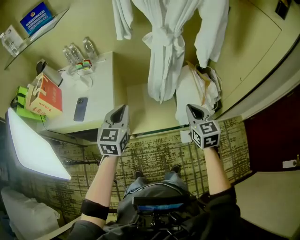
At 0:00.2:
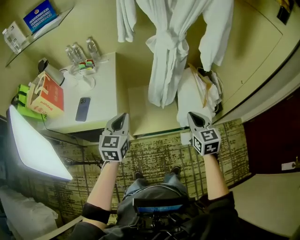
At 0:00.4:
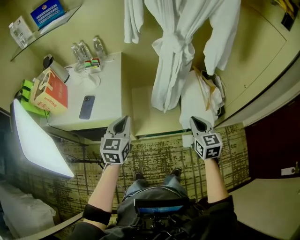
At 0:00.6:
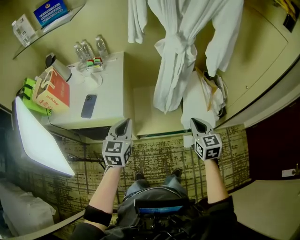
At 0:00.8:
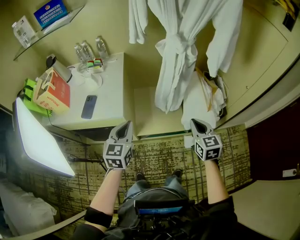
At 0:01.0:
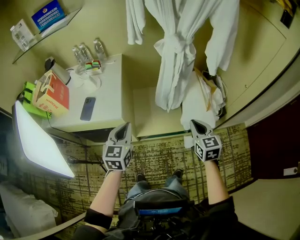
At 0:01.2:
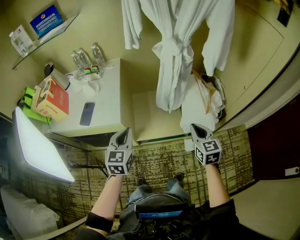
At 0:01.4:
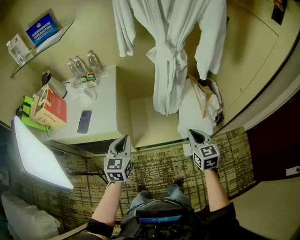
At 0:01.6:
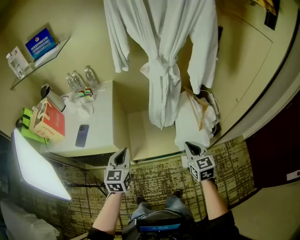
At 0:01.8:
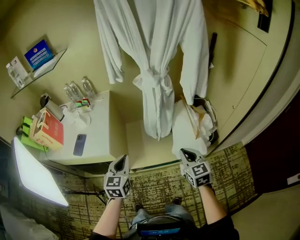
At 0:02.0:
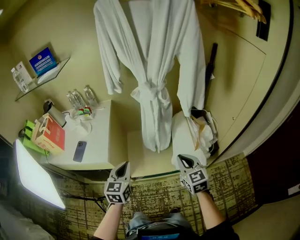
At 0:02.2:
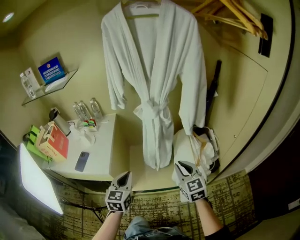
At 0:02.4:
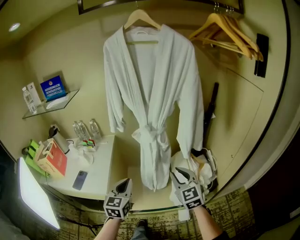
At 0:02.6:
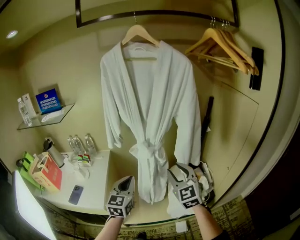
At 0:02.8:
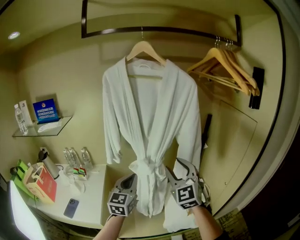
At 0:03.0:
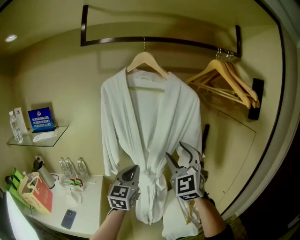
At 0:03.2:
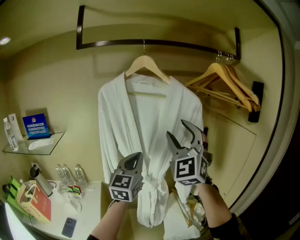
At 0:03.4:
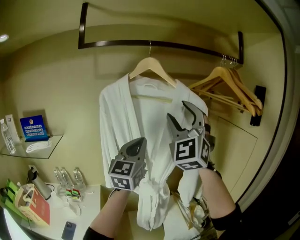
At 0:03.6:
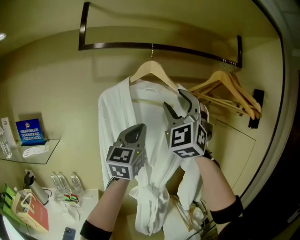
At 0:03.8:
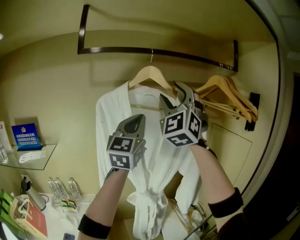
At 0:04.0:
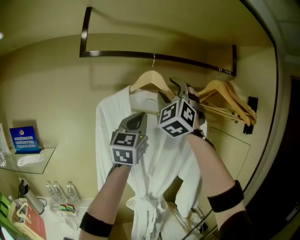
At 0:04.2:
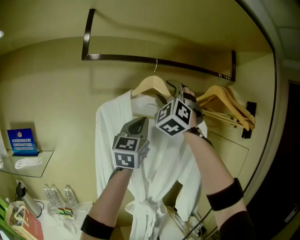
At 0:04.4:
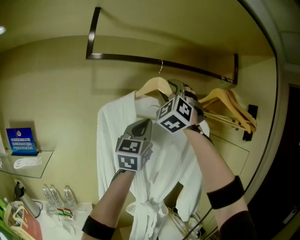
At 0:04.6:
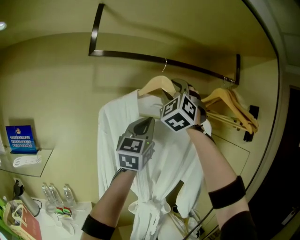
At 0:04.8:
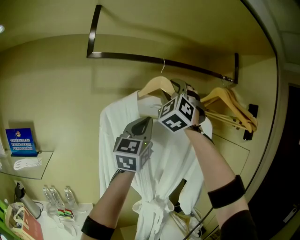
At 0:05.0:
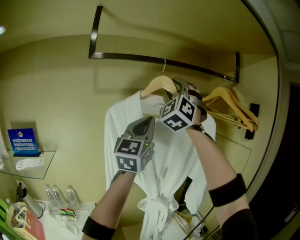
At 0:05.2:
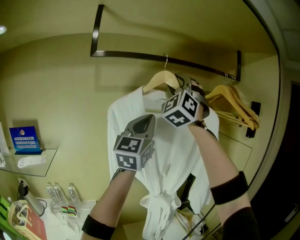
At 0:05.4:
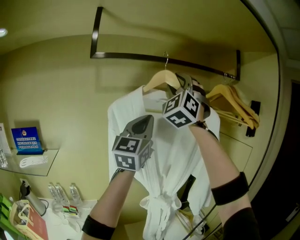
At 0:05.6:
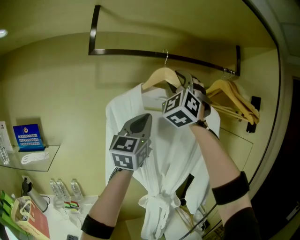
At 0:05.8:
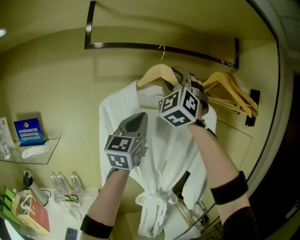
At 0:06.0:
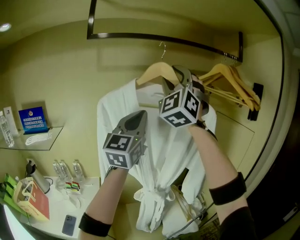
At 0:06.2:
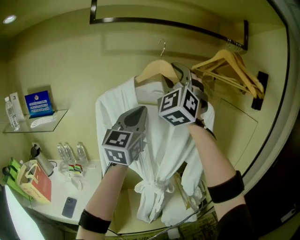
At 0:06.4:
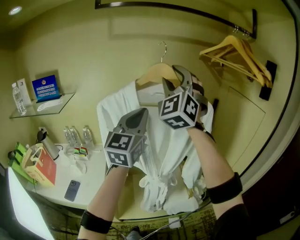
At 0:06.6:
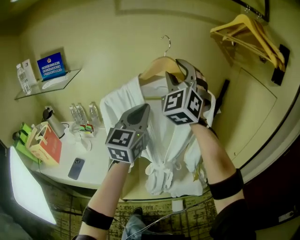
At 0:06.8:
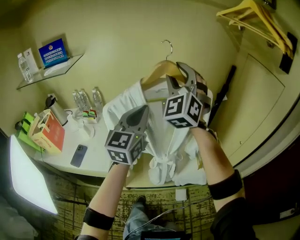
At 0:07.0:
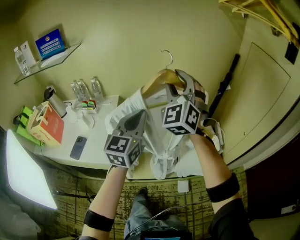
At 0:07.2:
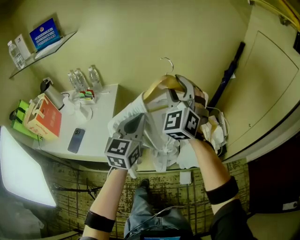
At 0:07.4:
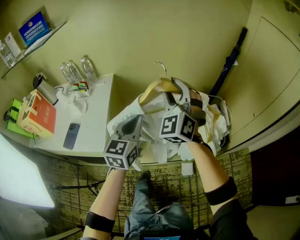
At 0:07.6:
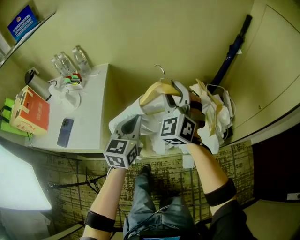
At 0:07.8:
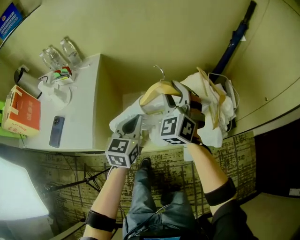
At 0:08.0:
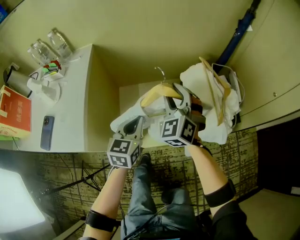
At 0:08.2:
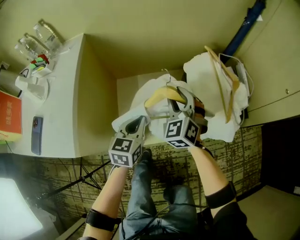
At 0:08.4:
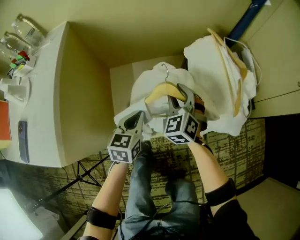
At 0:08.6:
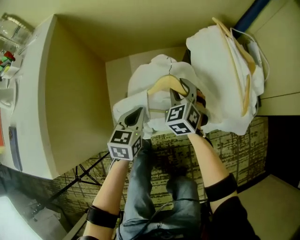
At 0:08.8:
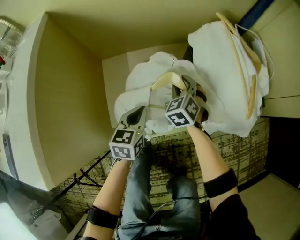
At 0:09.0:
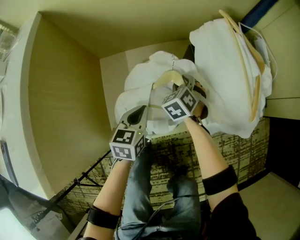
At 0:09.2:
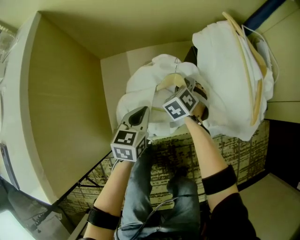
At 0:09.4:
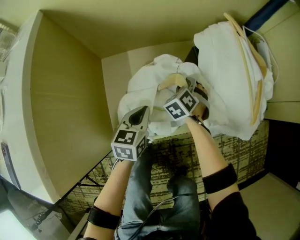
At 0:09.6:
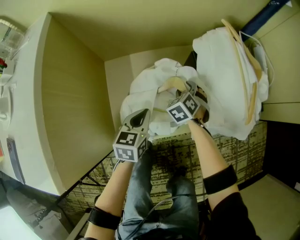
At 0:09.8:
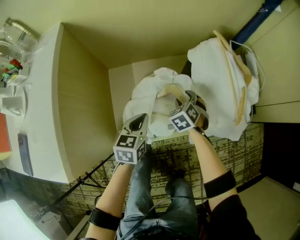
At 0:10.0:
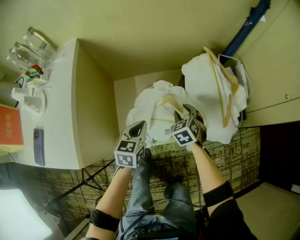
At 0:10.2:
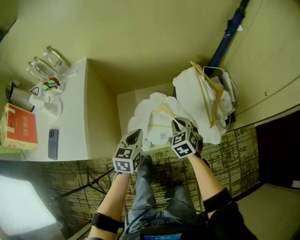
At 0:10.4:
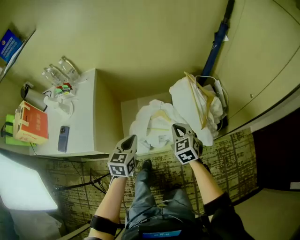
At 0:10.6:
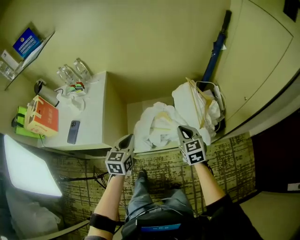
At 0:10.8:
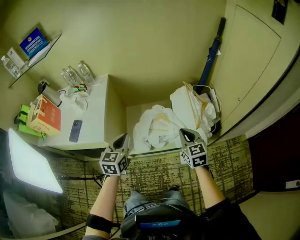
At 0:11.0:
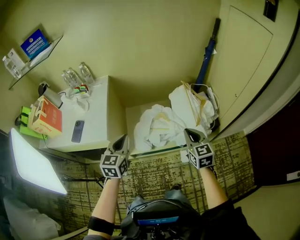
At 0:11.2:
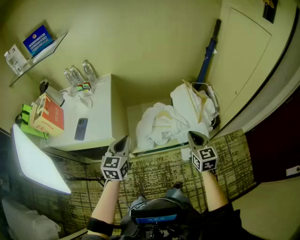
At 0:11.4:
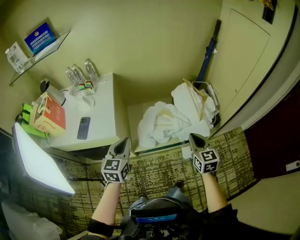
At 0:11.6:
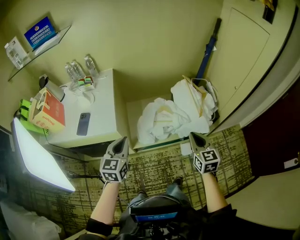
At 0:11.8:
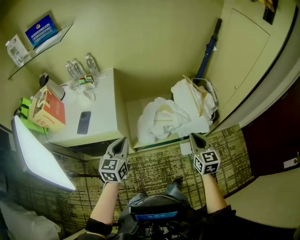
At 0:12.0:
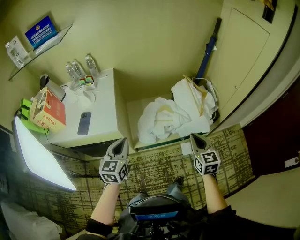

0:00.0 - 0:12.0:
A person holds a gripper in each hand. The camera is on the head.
0:00.0 - 0:01.6: The left gripper moves downward, approximately 5 cm. The right gripper shifts by some 5 cm.
0:01.6 - 0:03.0: The right gripper is displaced upward and forward by some 50 cm, tips its fingers upward by roughly 40 degrees, and opens up. Meanwhile the left gripper is displaced upward, forward and to the right by about 40 cm, and swivels roughly 30 degrees.
0:03.0 - 0:04.4: The right gripper travels upward and forward by roughly 35 cm, and swivels about 40 degrees, while the left gripper shifts about 30 cm upward, and rotates approximately 30 degrees.
0:04.4 - 0:06.0: The left gripper shifts some 10 cm backward and downward; the right gripper is displaced backward by approximately 10 cm.
0:06.0 - 0:07.6: The grippers both shift downward by about 60 cm. The left gripper tips its fingers downward by about 40 degrees. The right gripper points its fingers some 30 degrees further downward.
0:07.6 - 0:09.0: The two grippers go approximately 50 cm downward. The left gripper changes its angle by approximately 30 degrees. Meanwhile the right gripper points its fingers roughly 40 degrees further downward.
0:09.0 - 0:10.4: The grippers both shift upward and backward by about 40 cm. The right gripper swivels about 30 degrees, and closes up.
0:10.4 - 0:12.0: The right gripper travels backward and upward by about 30 cm, and swivels some 20 degrees; the left gripper shifts approximately 25 cm backward, to the left and upward.

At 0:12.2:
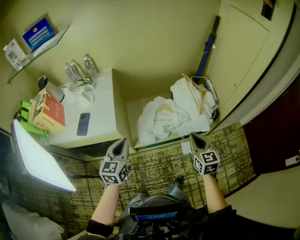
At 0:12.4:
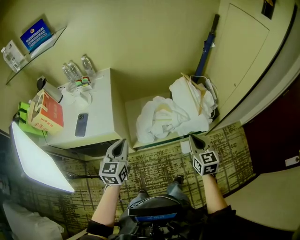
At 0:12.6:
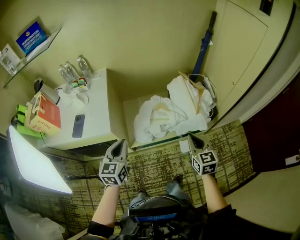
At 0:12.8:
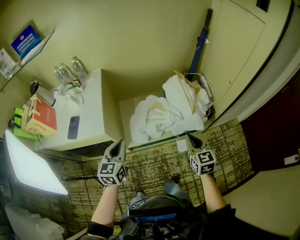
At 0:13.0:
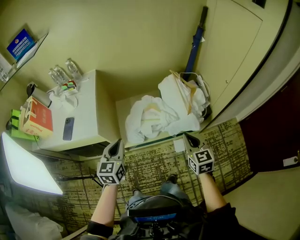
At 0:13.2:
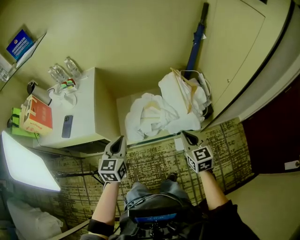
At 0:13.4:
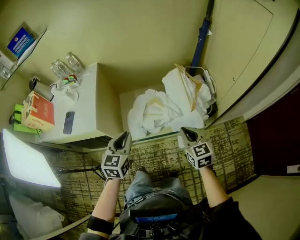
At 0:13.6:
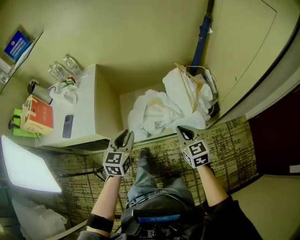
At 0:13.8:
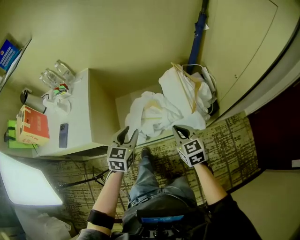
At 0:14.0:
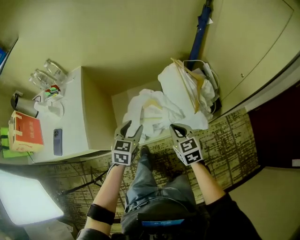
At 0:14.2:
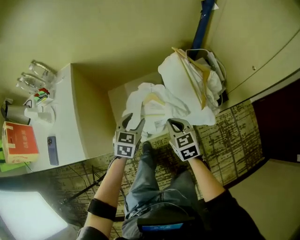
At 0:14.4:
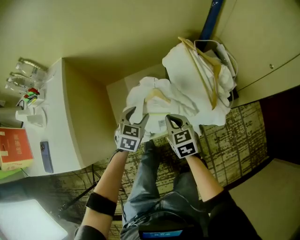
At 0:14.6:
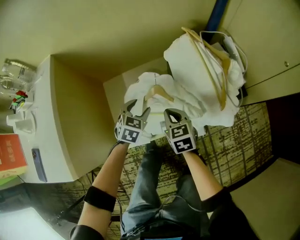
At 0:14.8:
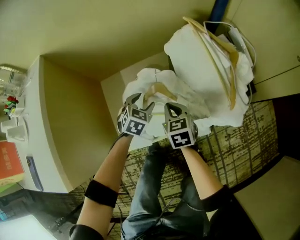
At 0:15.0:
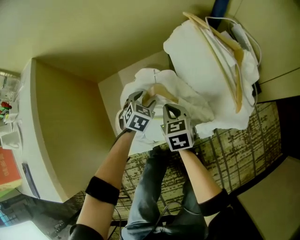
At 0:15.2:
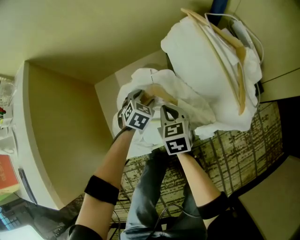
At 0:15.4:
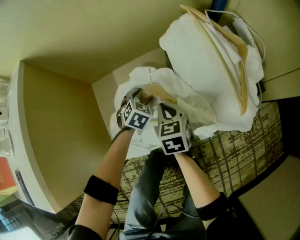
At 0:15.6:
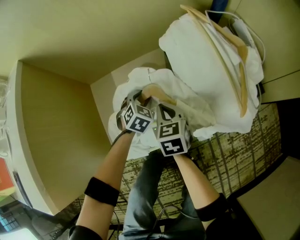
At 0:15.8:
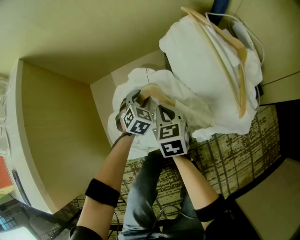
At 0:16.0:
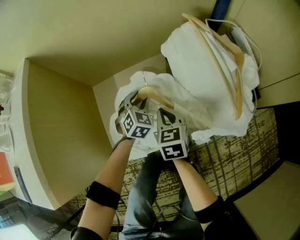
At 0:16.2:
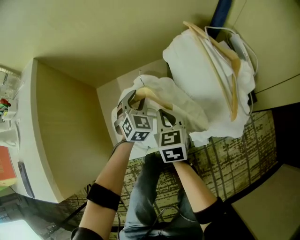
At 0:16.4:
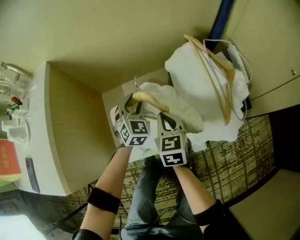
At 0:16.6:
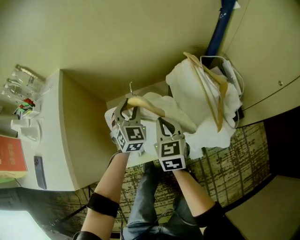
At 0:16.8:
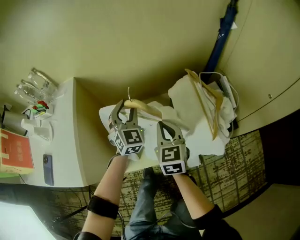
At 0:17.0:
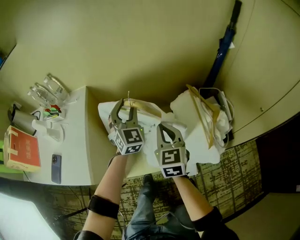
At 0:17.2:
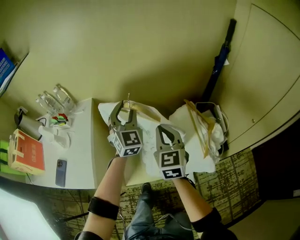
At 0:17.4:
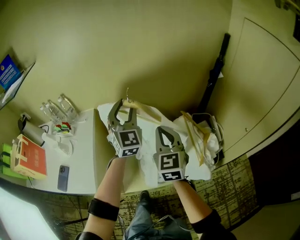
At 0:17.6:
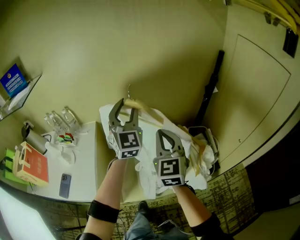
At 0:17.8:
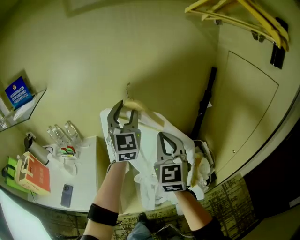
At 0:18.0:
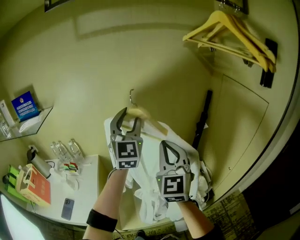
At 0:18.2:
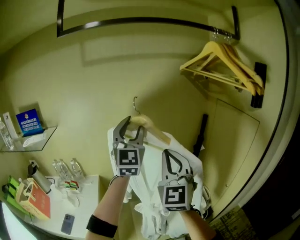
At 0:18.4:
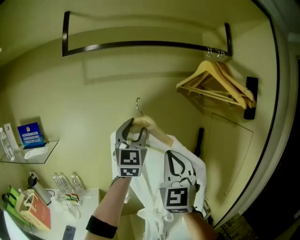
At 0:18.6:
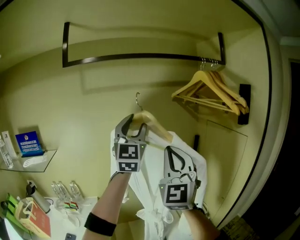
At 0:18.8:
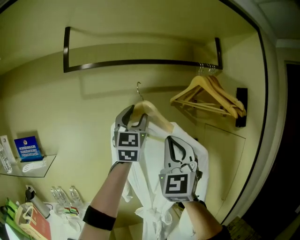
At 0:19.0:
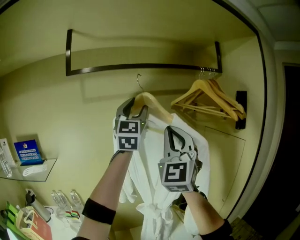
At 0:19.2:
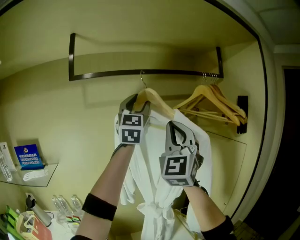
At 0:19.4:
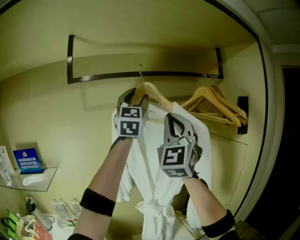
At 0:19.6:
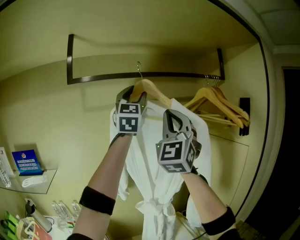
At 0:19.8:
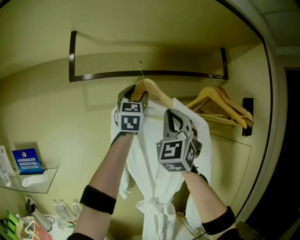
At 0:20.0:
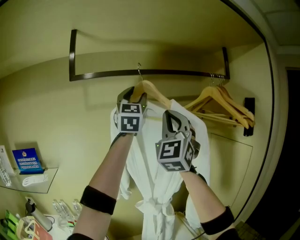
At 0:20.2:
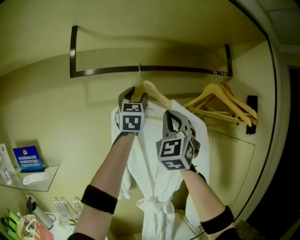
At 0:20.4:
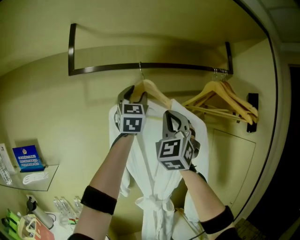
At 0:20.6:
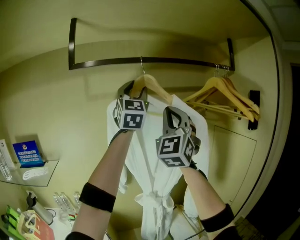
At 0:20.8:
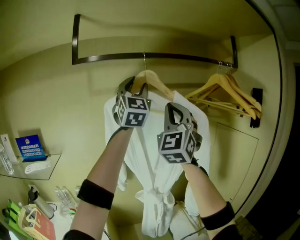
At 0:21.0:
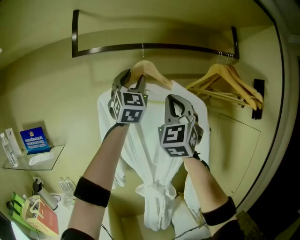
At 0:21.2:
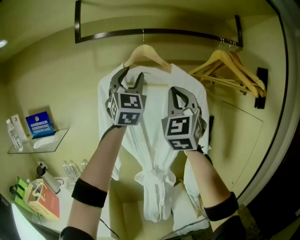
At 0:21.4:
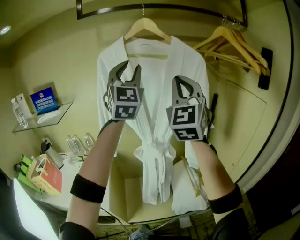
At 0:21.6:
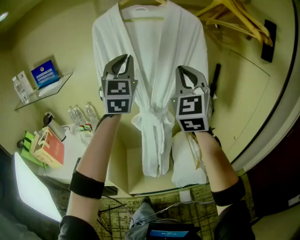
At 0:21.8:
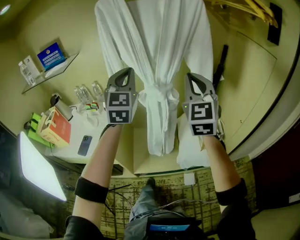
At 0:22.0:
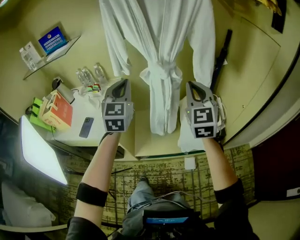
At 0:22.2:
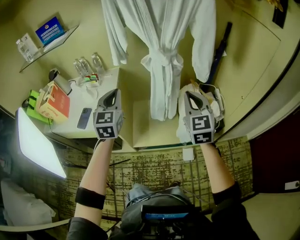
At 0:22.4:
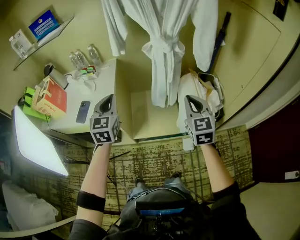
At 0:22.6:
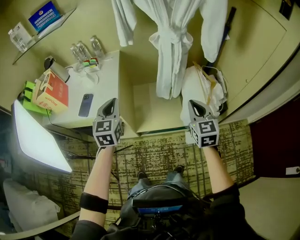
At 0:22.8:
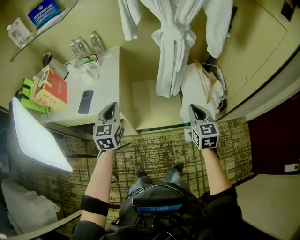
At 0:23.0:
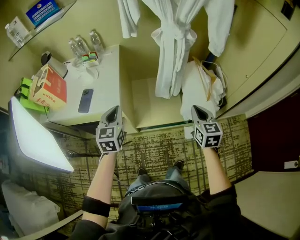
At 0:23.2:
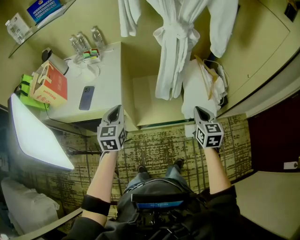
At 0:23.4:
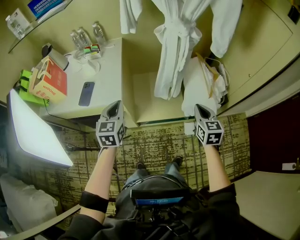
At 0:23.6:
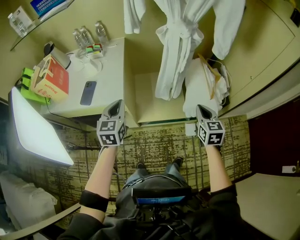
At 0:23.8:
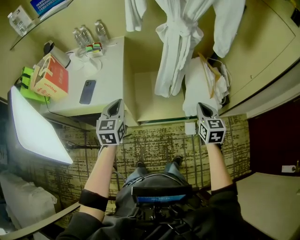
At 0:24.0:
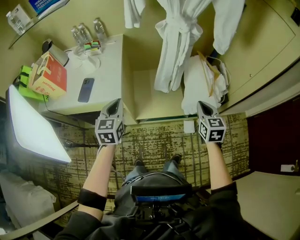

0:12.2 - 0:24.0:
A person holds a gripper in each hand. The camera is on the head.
0:12.2 - 0:13.6: The right gripper goes approximately 10 cm forward, to the right and downward, while the left gripper travels to the right and forward by roughly 15 cm.
0:13.6 - 0:15.2: The grippers both shift downward and forward by approximately 50 cm. The right gripper swivels approximately 20 degrees. The left gripper tilts its fingers about 30 degrees downward, and opens.
0:15.2 - 0:16.6: The two grippers go some 25 cm upward. The left gripper tilts its fingers roughly 30 degrees upward.
0:16.6 - 0:18.2: The grippers both shift upward by some 70 cm. The right gripper angles its fingers upward, by roughly 50 degrees. Meanwhile the left gripper points its fingers roughly 50 degrees further upward.
0:18.2 - 0:19.6: Both grippers move upward, approximately 30 cm. The right gripper changes its angle by roughly 30 degrees.
0:19.6 - 0:21.0: The left gripper travels downward by about 5 cm. The right gripper ends up approximately 5 cm from where it was.
0:21.0 - 0:22.6: Both grippers move downward and backward, some 70 cm. The left gripper angles its fingers downward, by about 50 degrees, and closes, while the right gripper angles its fingers downward, by roughly 50 degrees.
0:22.6 - 0:24.0: The grippers both shift downward by about 5 cm.
